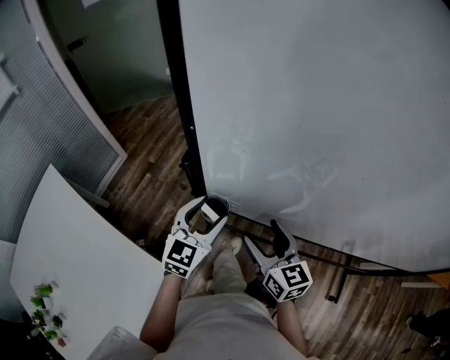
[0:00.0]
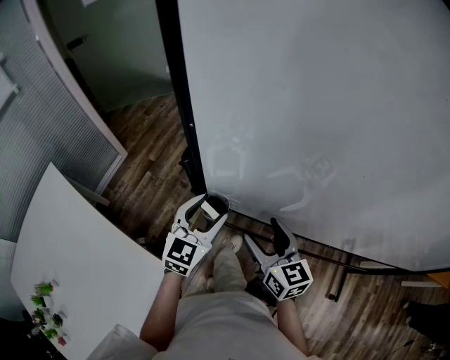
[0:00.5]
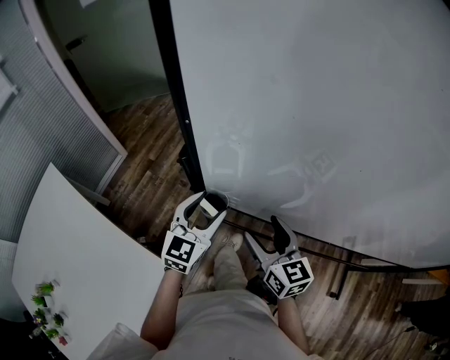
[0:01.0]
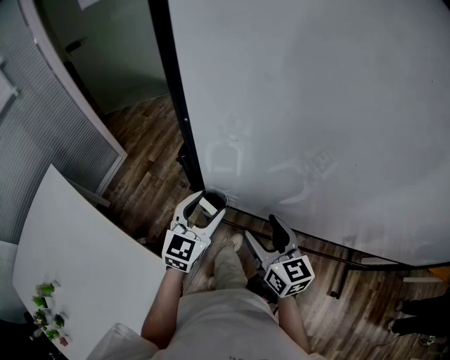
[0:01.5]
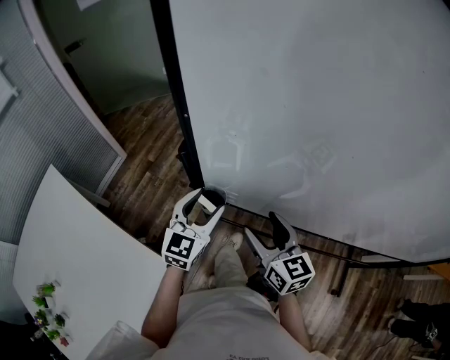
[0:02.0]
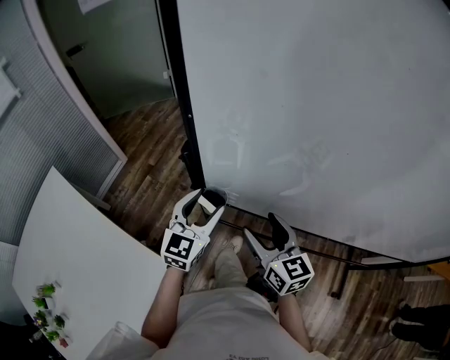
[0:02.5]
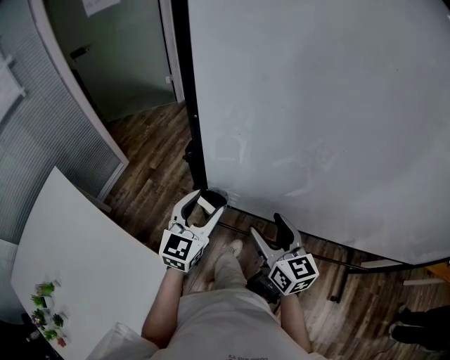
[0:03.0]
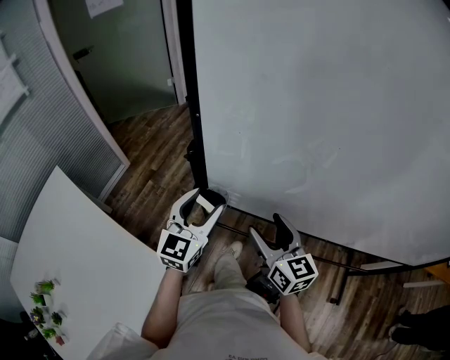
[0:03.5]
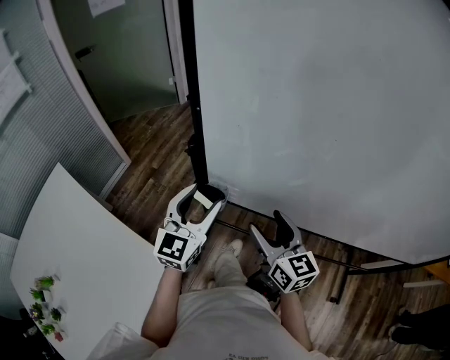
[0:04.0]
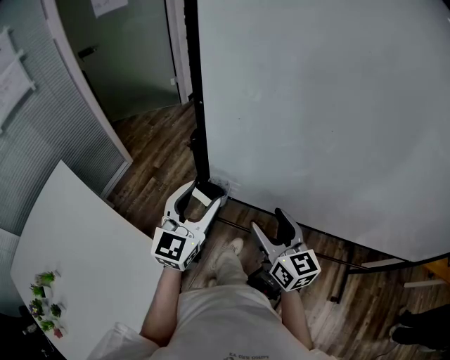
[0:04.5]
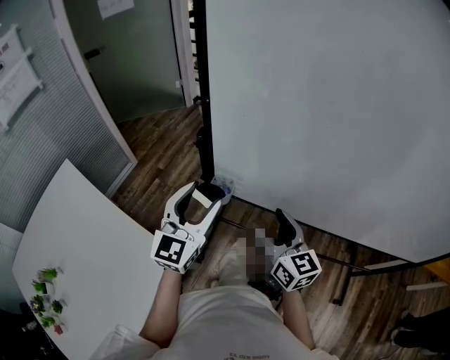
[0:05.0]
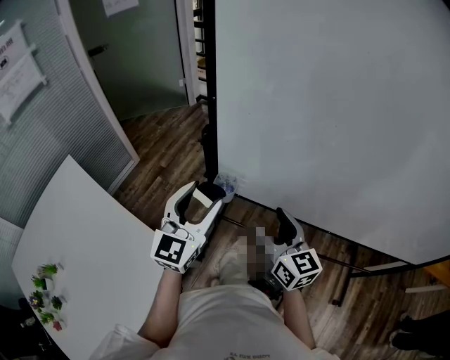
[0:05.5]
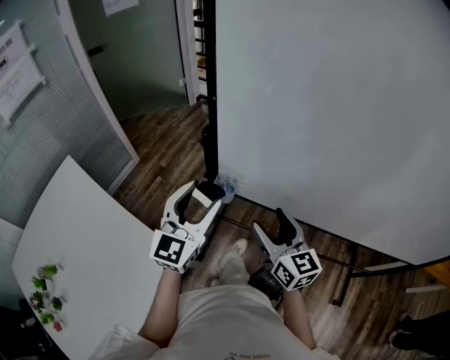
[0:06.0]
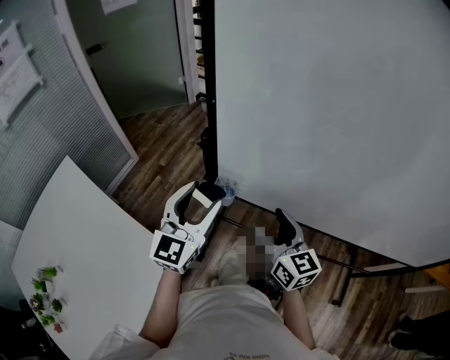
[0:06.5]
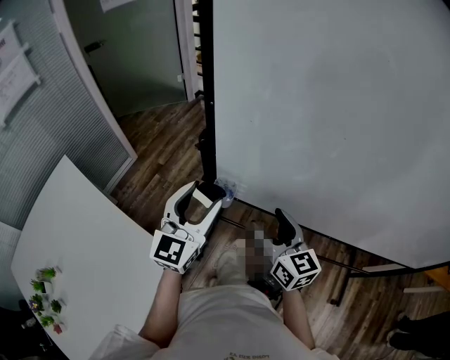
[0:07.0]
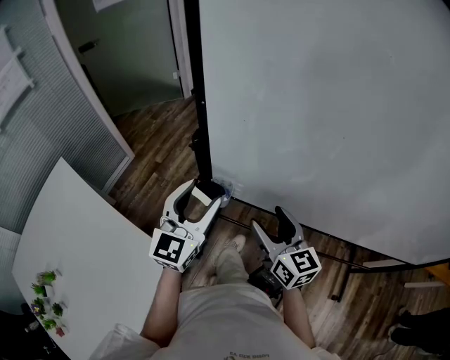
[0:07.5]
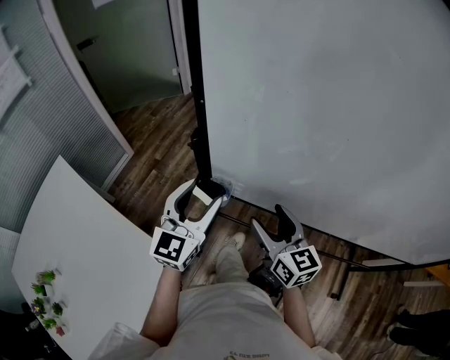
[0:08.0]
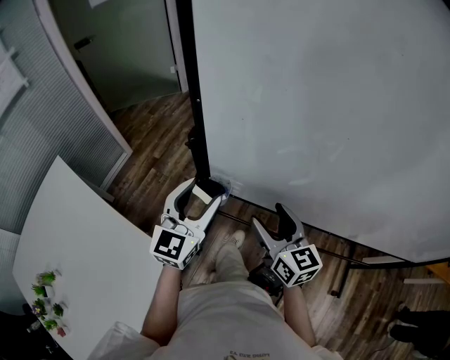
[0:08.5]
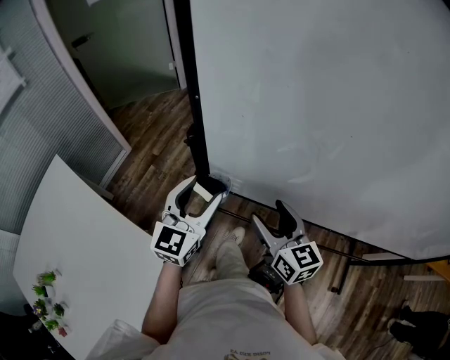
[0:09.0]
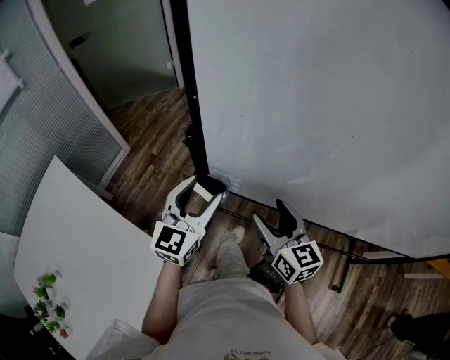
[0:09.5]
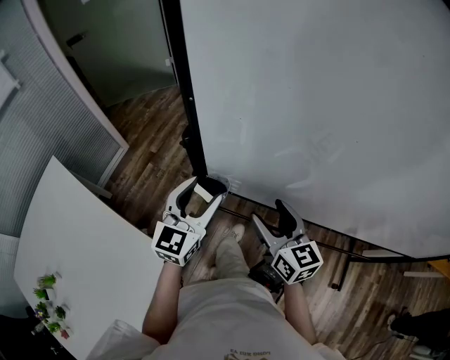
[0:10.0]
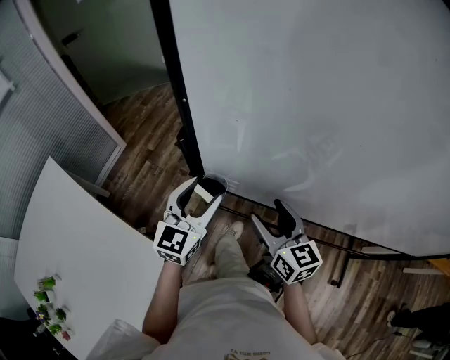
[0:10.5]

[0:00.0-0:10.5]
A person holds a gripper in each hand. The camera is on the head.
0:00.0 to 0:02.0: Both grippers stay about where they are.
0:02.0 to 0:04.0: The left gripper is displaced upward by approximately 5 cm.
0:04.0 to 0:06.5: The left gripper ends up approximately 5 cm from where it was.
0:06.5 to 0:08.5: The left gripper ends up some 5 cm from where it was.
0:08.5 to 0:10.5: The left gripper goes roughly 5 cm downward.

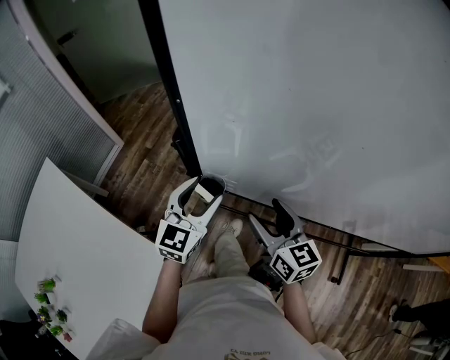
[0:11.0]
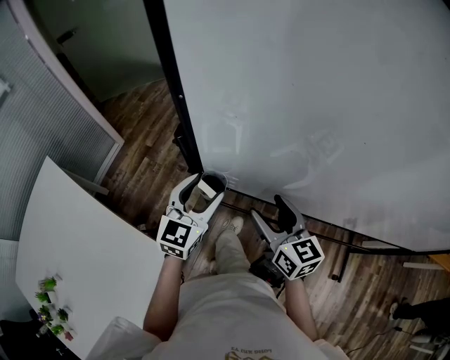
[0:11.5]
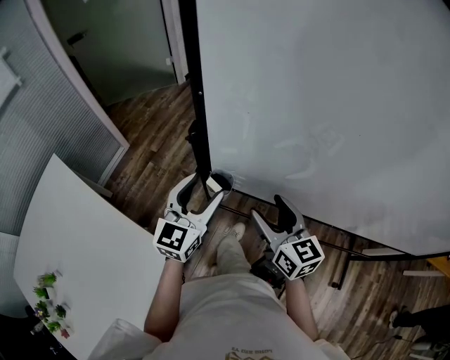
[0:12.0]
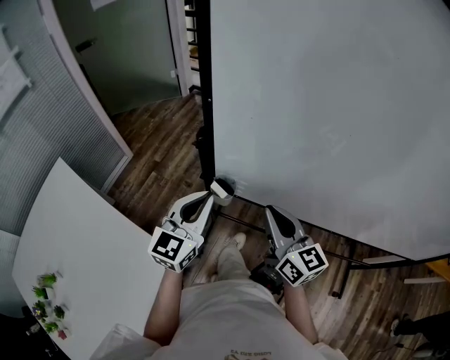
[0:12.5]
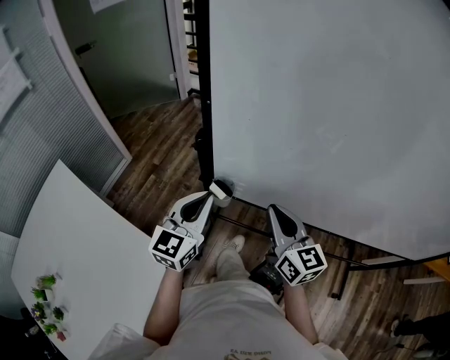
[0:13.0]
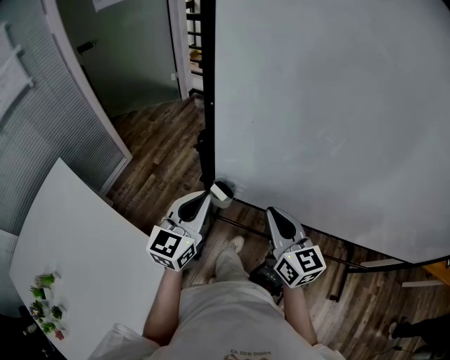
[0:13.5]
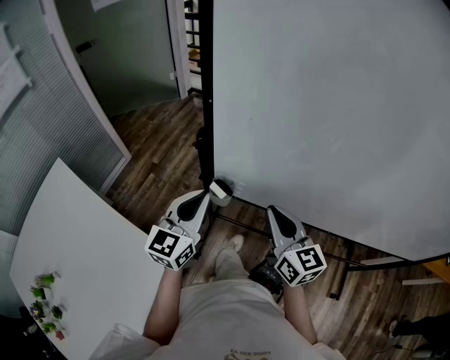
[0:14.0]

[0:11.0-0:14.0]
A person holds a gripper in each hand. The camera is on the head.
0:11.0 to 0:12.5: The left gripper goes approximately 10 cm upward and backward, and closes up. Meanwhile the right gripper travels upward by roughly 5 cm, and closes its fingers.
0:12.5 to 0:14.0: The grippers move only a little.

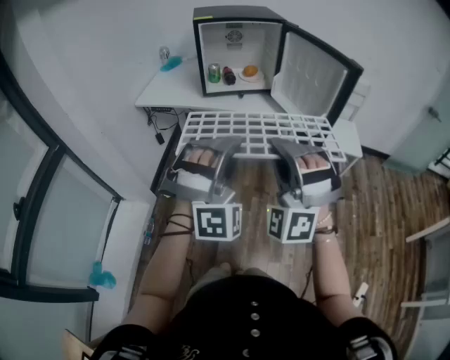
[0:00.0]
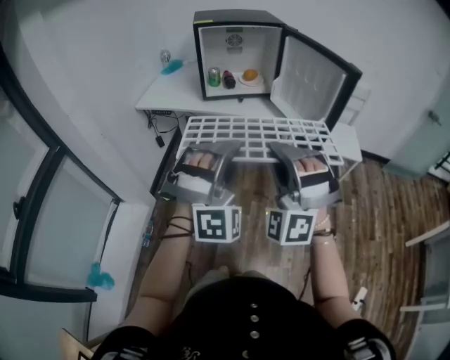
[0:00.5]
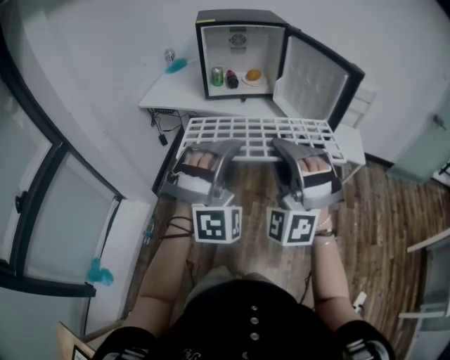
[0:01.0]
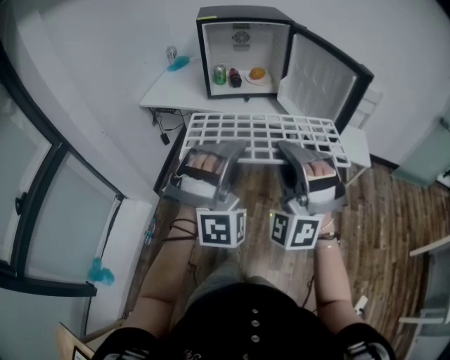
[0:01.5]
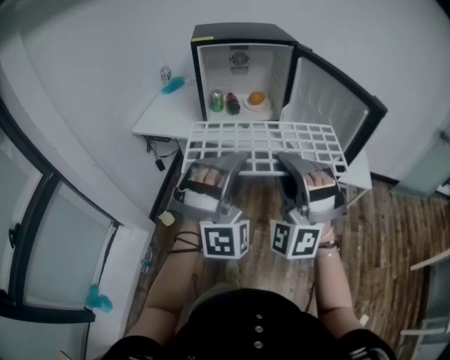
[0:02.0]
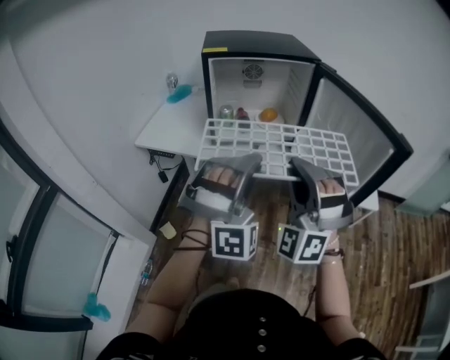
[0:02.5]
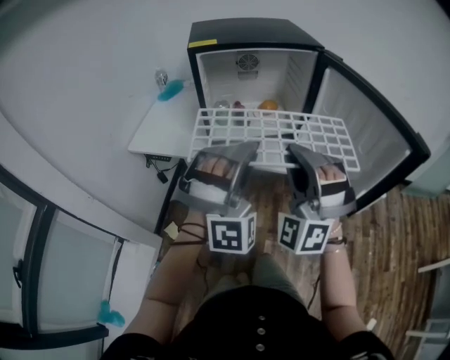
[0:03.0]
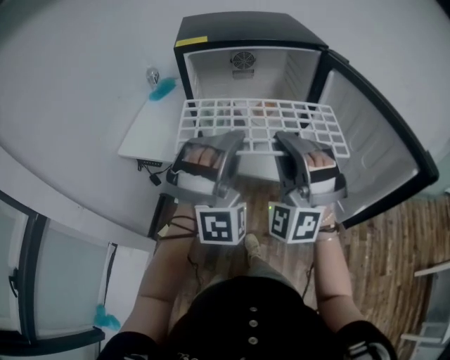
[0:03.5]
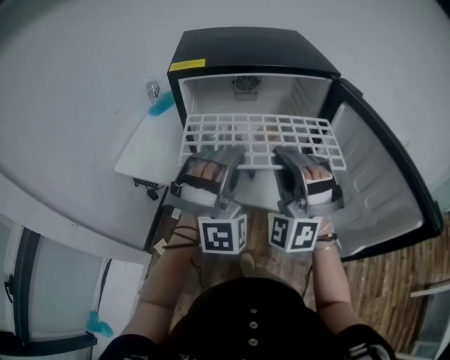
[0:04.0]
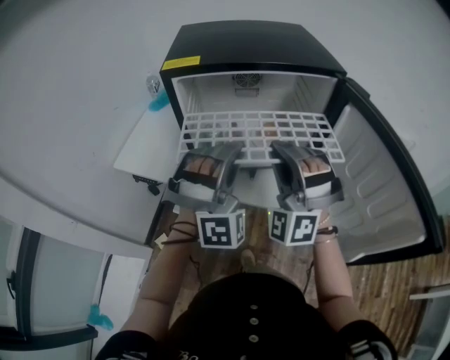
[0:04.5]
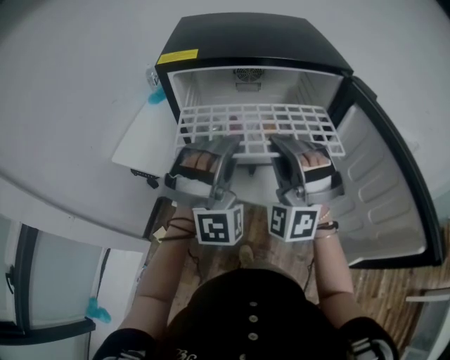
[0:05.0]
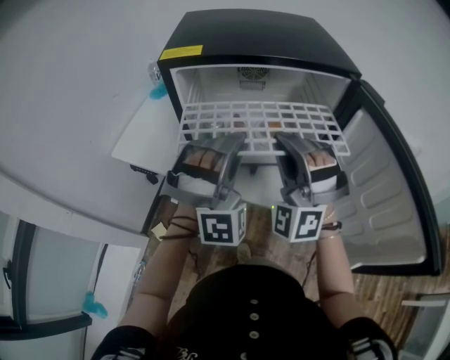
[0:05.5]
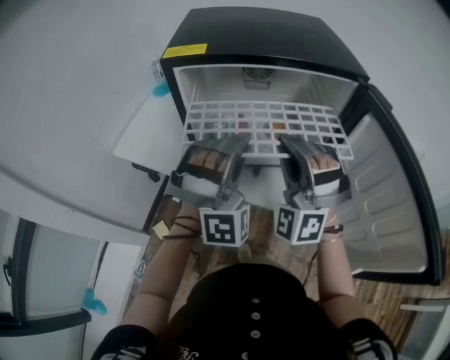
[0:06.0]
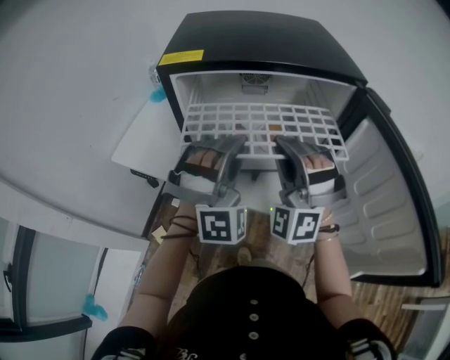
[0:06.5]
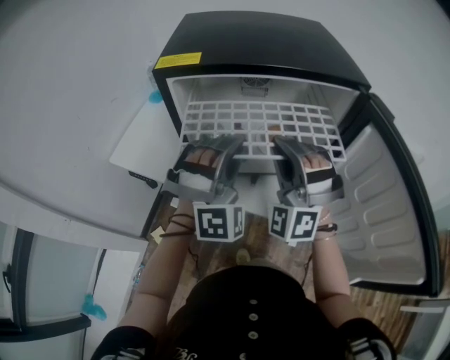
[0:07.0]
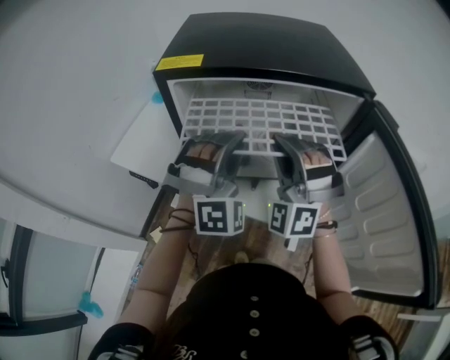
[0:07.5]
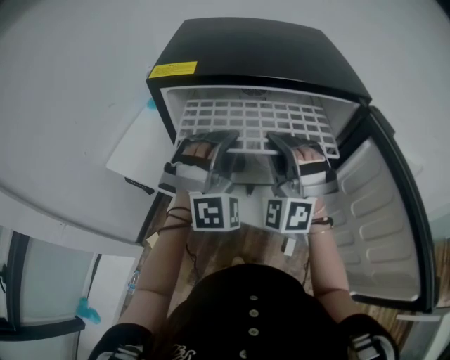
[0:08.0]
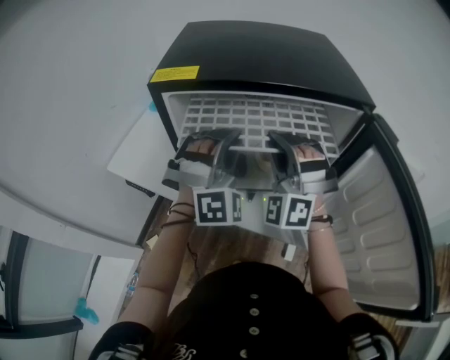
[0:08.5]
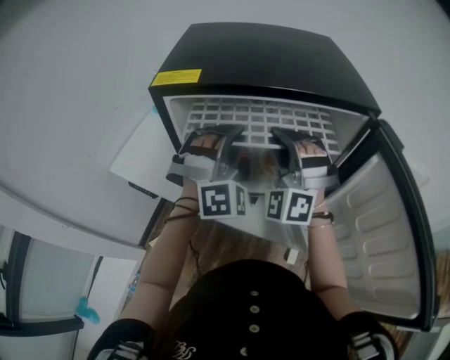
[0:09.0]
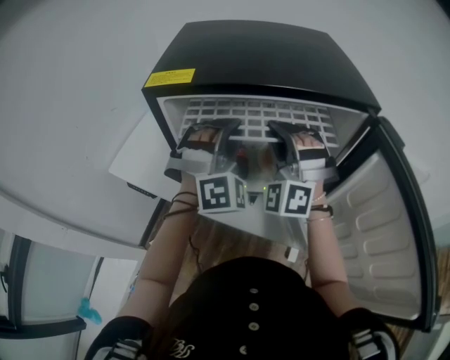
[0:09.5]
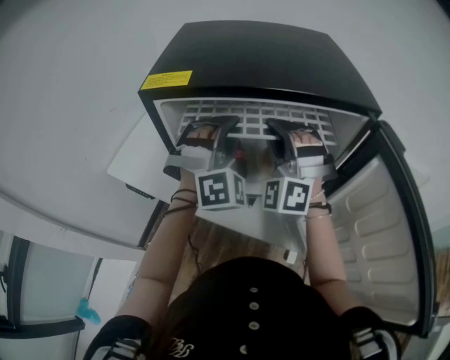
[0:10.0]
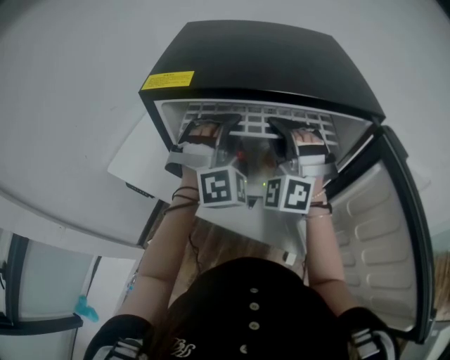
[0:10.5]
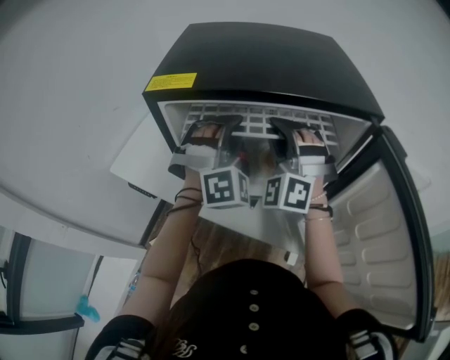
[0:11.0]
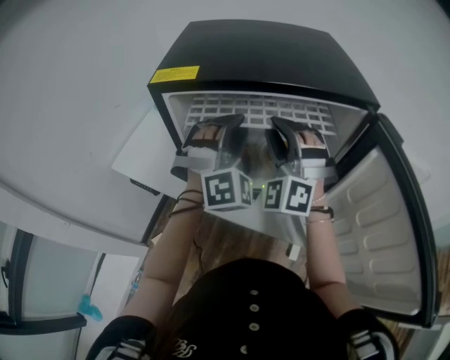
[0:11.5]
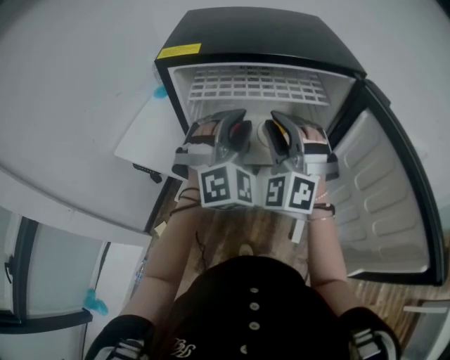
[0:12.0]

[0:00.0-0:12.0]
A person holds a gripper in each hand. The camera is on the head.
0:00.0 to 0:02.0: The grippers both shift forward by roughly 15 cm.
0:02.0 to 0:04.0: The two grippers go roughly 30 cm forward.
0:04.0 to 0:06.0: The two grippers go approximately 5 cm forward.
0:06.0 to 0:08.0: Both grippers travel together forward, some 10 cm.
0:08.0 to 0:10.0: The grippers both shift forward by roughly 10 cm.
0:10.0 to 0:12.0: Both grippers travel together backward, some 10 cm.

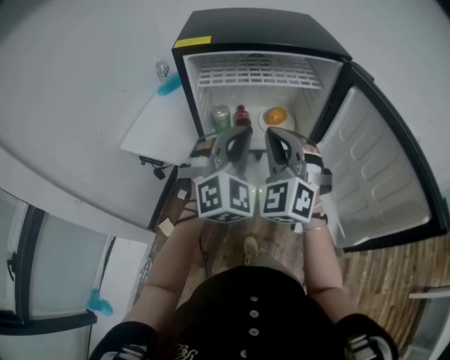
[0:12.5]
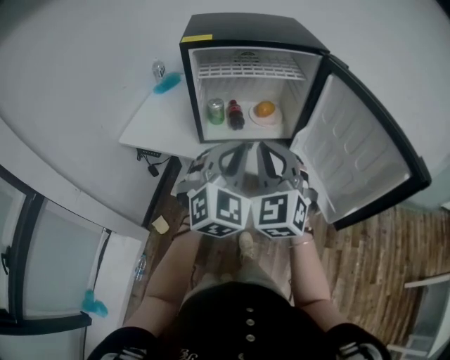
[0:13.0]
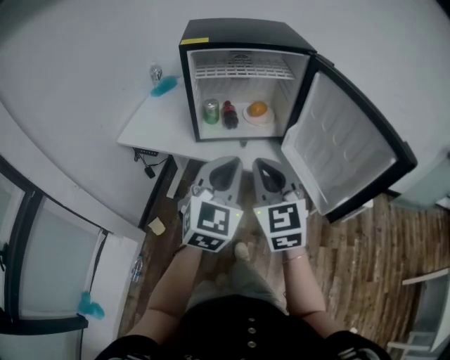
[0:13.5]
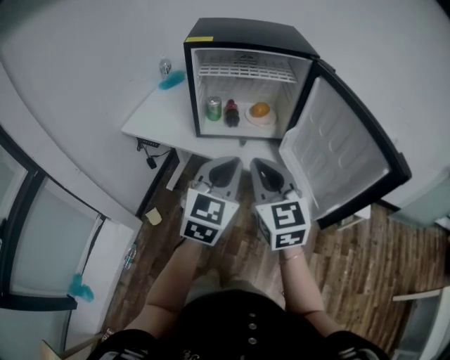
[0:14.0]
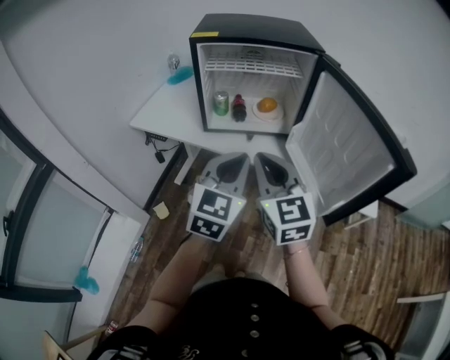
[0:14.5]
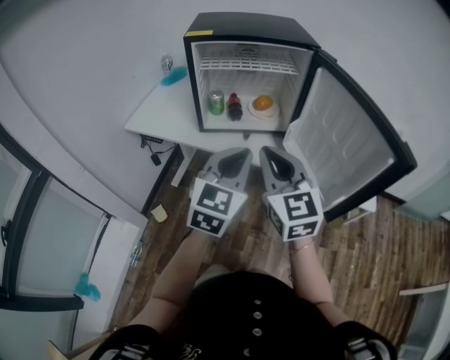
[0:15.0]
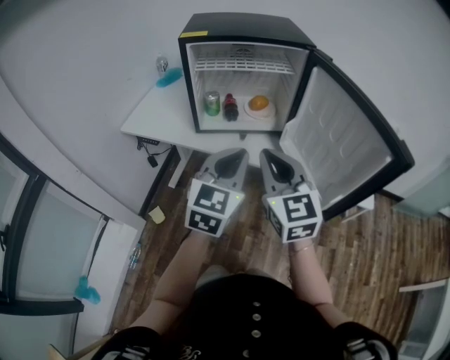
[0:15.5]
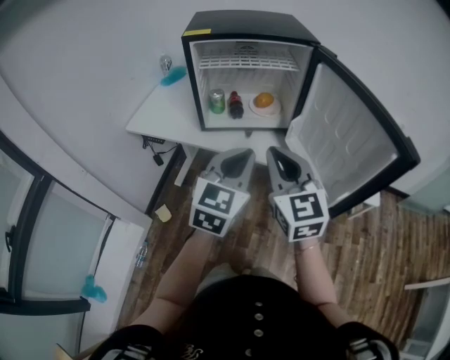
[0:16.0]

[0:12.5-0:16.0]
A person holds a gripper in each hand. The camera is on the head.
0:12.5 to 0:14.5: Both grippers travel together backward, approximately 20 cm. The left gripper rotates around the line of its fingers by approximately 40 degrees, counterclockwise from behind; the right gripper rolls clockwise, seen from behind, by roughly 50 degrees.
0:14.5 to 0:16.0: The grippers make only small movements.
